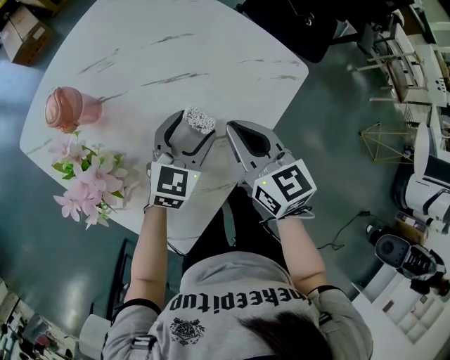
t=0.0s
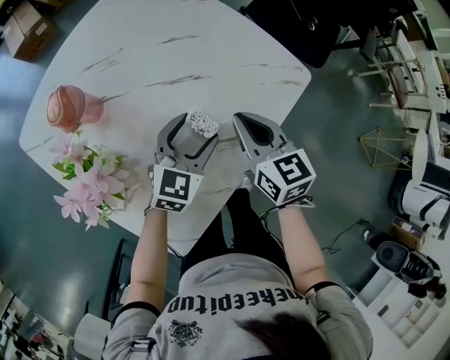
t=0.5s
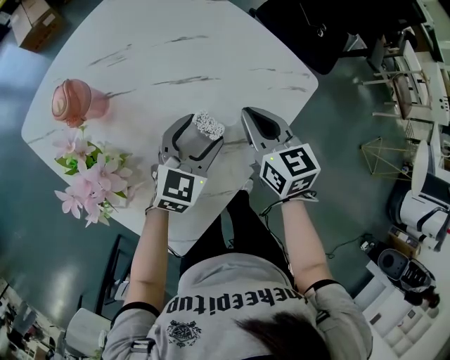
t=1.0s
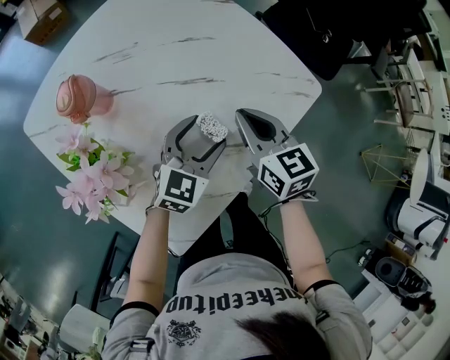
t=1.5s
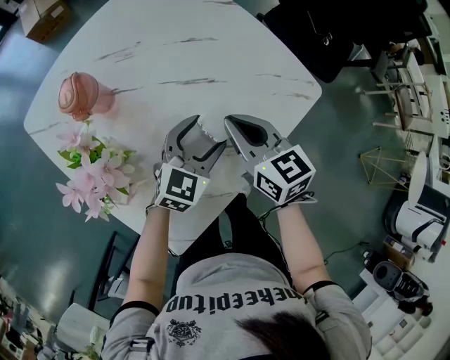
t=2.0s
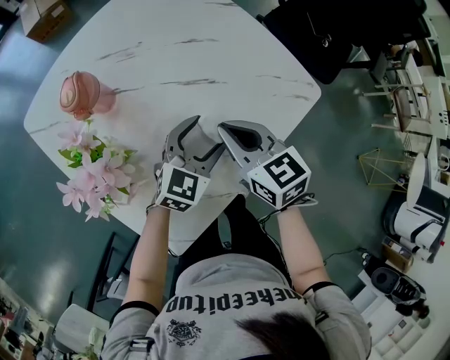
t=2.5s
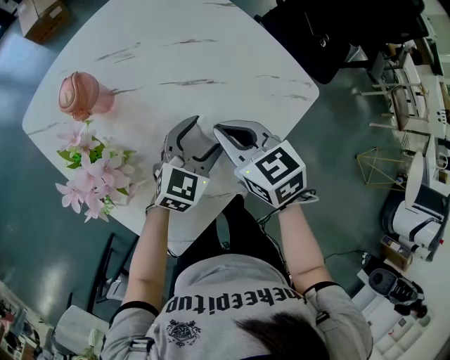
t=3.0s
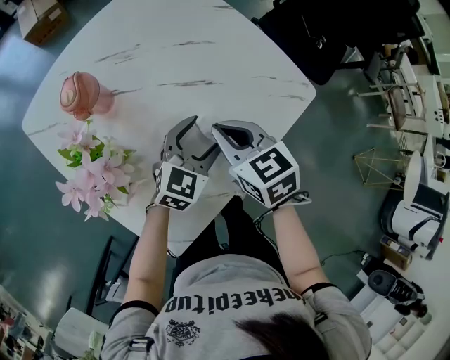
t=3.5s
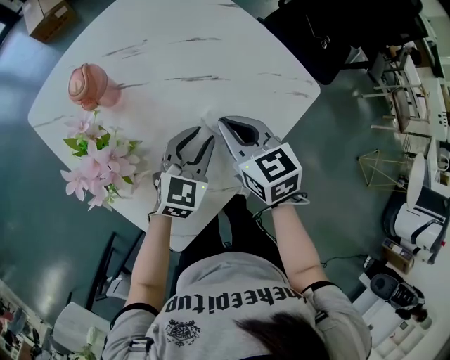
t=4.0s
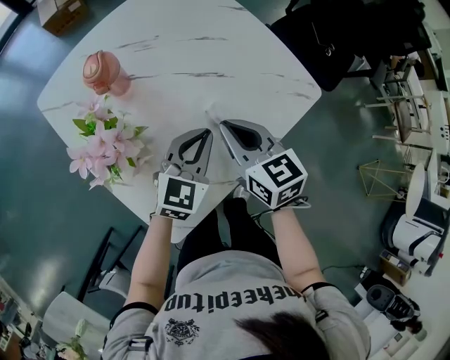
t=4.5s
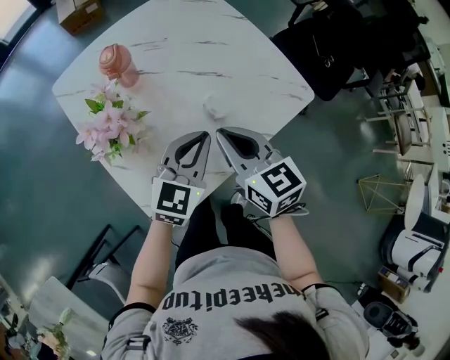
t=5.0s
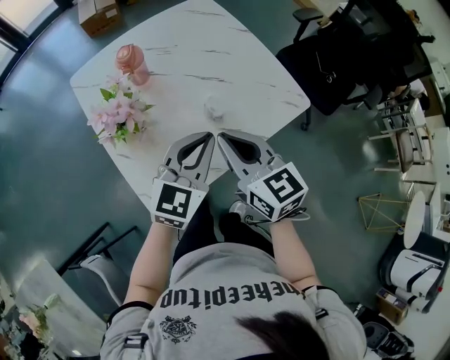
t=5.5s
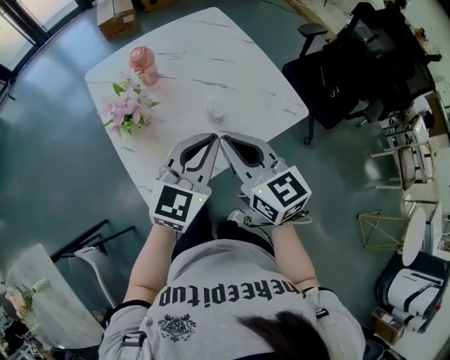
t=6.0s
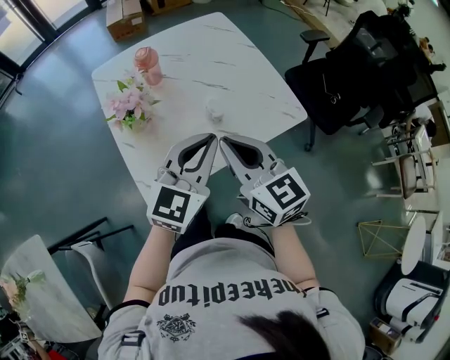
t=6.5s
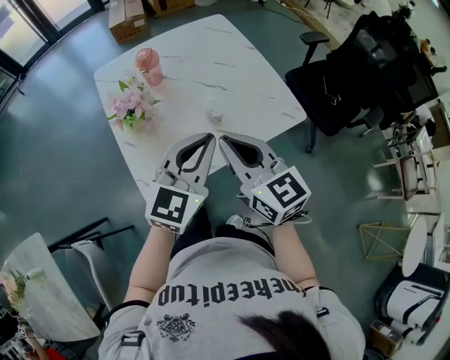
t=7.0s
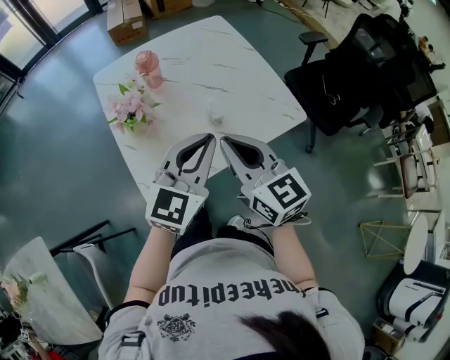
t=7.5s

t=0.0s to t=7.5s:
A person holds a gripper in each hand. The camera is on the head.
t=0.0s to t=2.0s: The right gripper changes place by about 5 cm.
t=2.0s to t=4.0s: The left gripper closes its fingers.
t=4.0s to t=5.5s: Both grippers travel together upward and backward, some 15 cm. The left gripper closes its fingers. Meanwhile the right gripper turns by some 20 degrees.
t=5.5s to t=7.5s: The grippers both shift upward by some 5 cm.

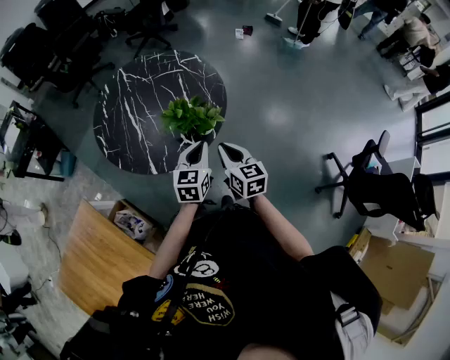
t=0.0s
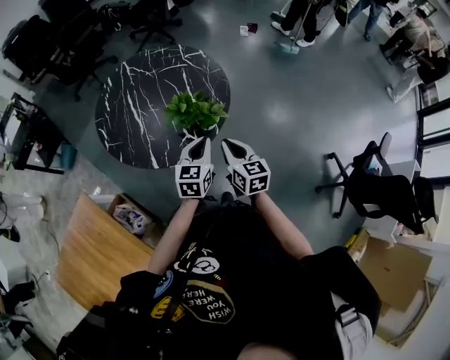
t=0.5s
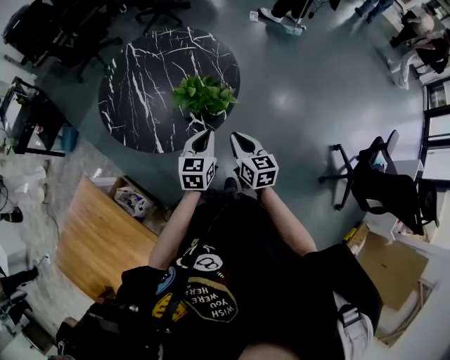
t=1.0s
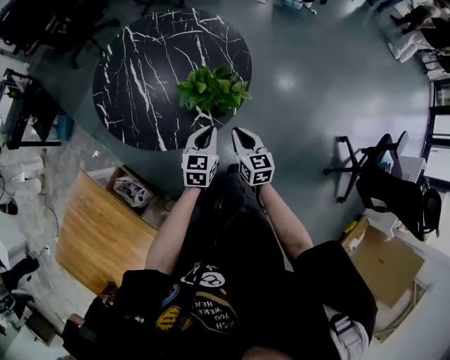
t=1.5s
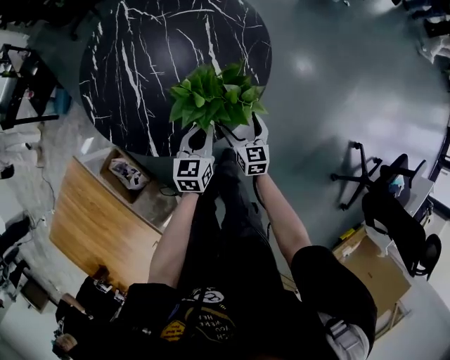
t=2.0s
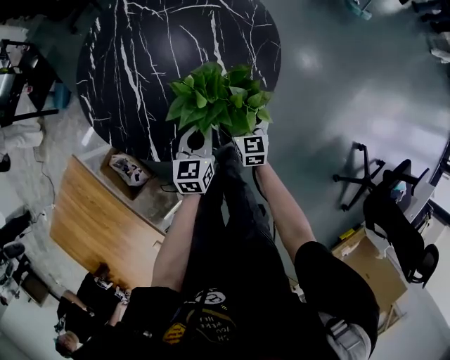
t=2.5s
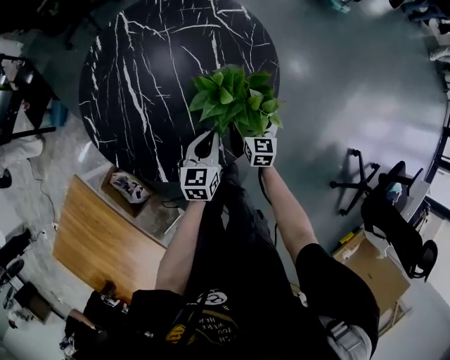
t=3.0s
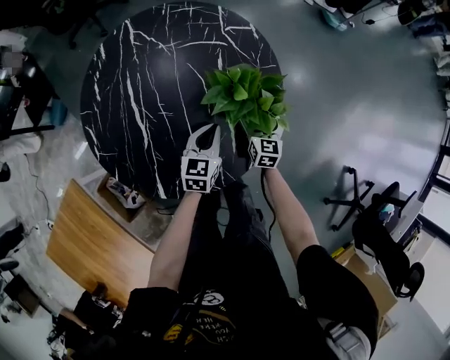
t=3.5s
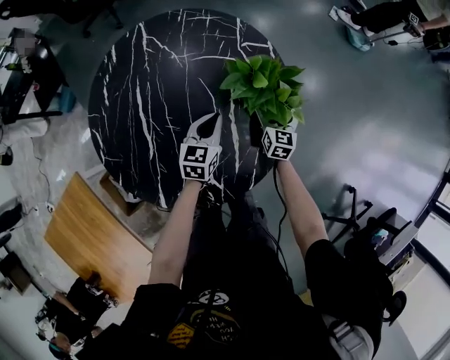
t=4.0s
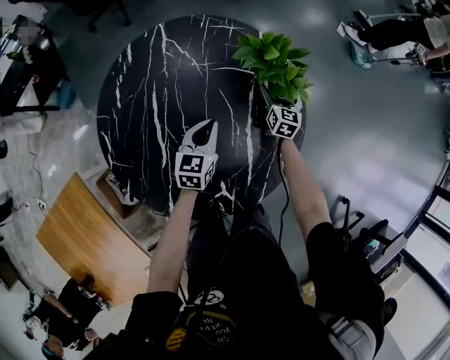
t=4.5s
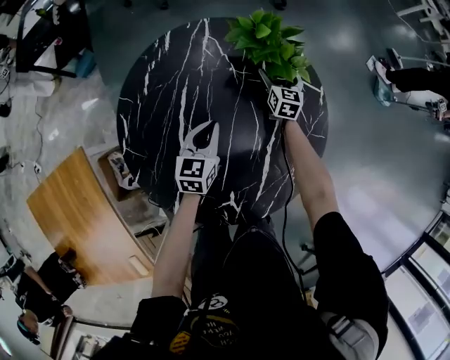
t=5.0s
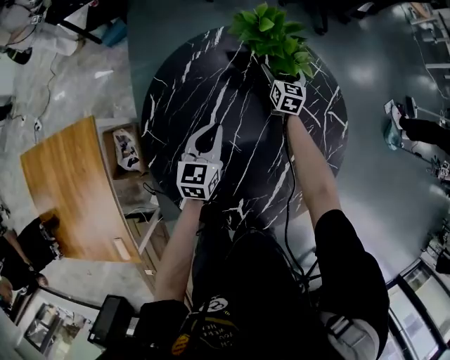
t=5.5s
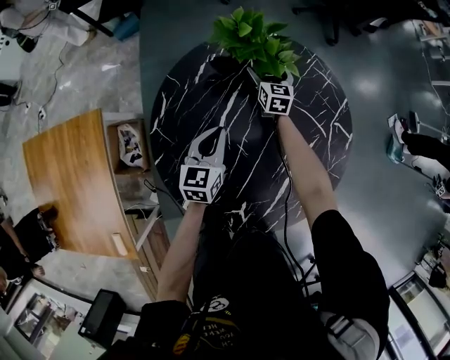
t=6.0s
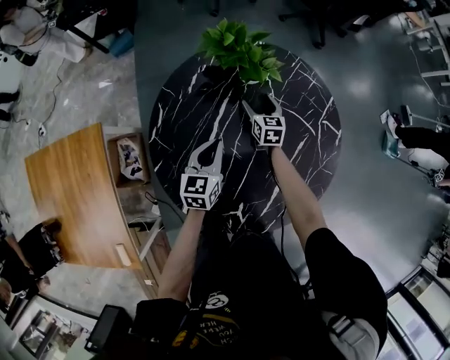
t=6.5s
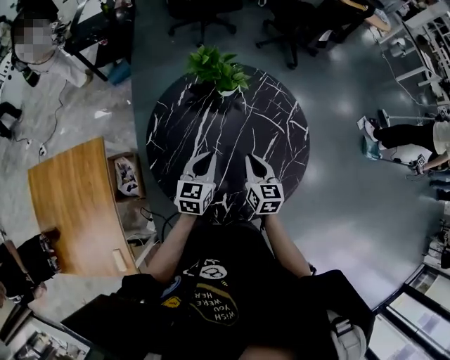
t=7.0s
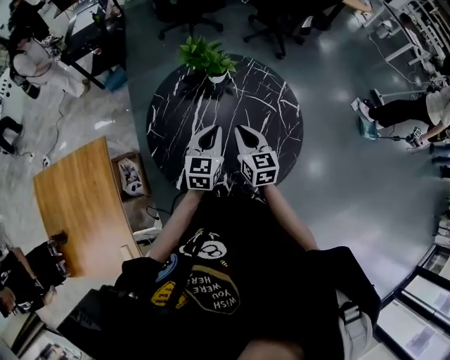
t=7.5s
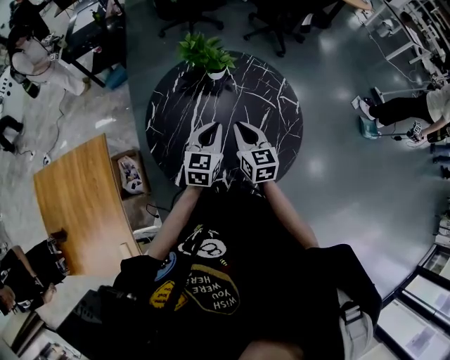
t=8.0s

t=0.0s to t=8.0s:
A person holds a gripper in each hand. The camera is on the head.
t=0.0s to t=2.0s: The grippers both shift downward and forward by some 25 cm. The right gripper opens up.
t=2.0s to t=4.0s: The two grippers go about 30 cm forward.
t=4.0s to t=6.0s: The right gripper changes place by some 50 cm, and swivels some 40 degrees. Meanwhile the left gripper ends up roughly 30 cm from where it was, and changes its angle by roughly 40 degrees.
t=6.0s to t=8.0s: The left gripper moves upward, backward and to the right, approximately 25 cm, while the right gripper goes about 50 cm backward and upward, and closes up.

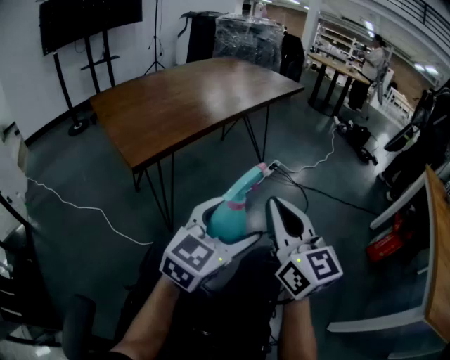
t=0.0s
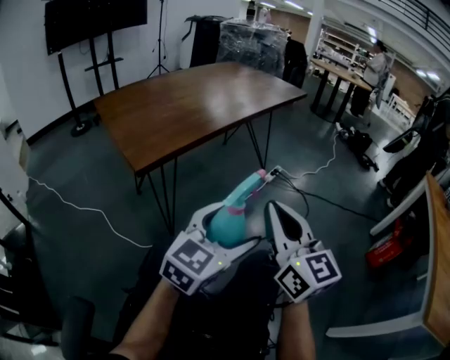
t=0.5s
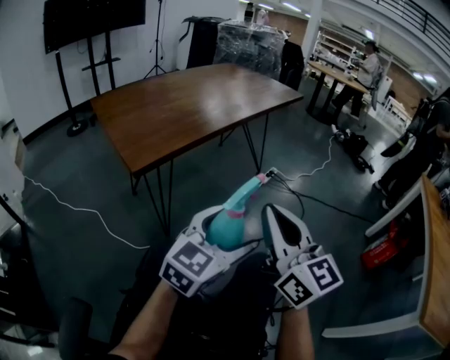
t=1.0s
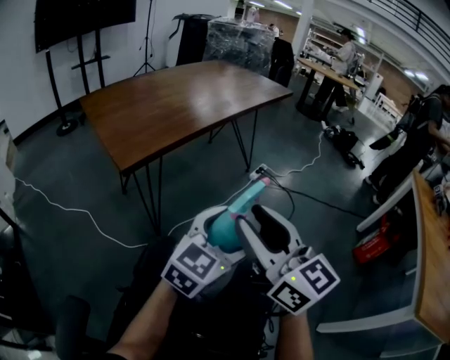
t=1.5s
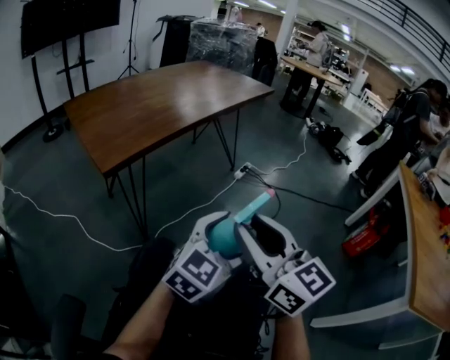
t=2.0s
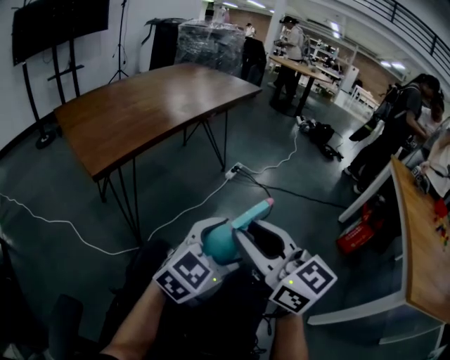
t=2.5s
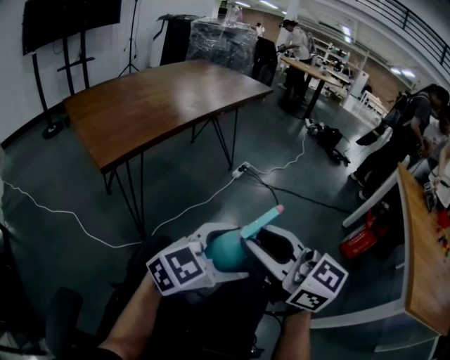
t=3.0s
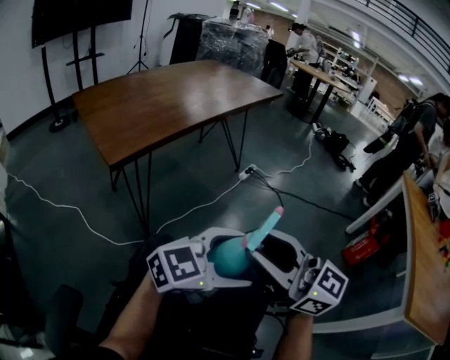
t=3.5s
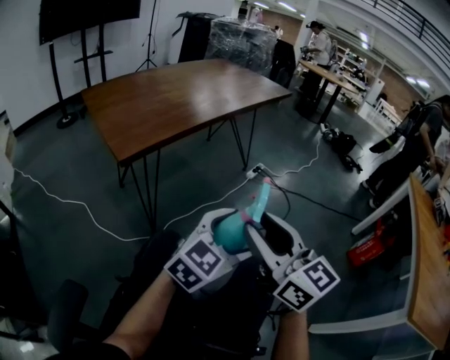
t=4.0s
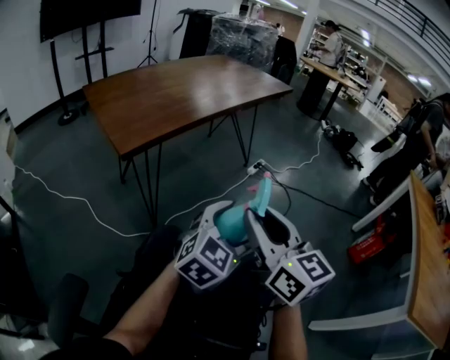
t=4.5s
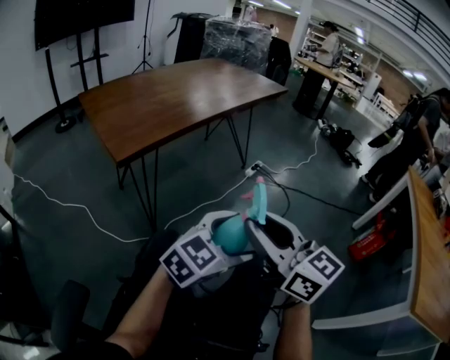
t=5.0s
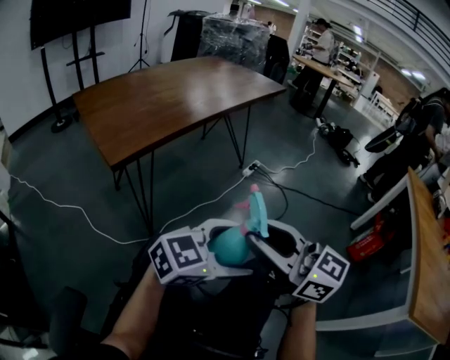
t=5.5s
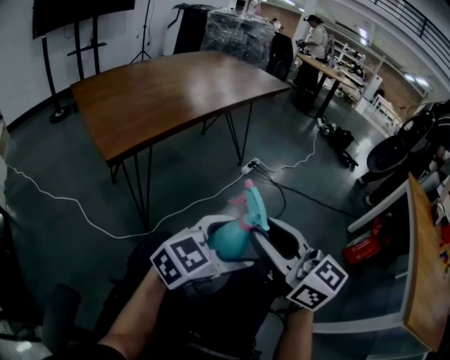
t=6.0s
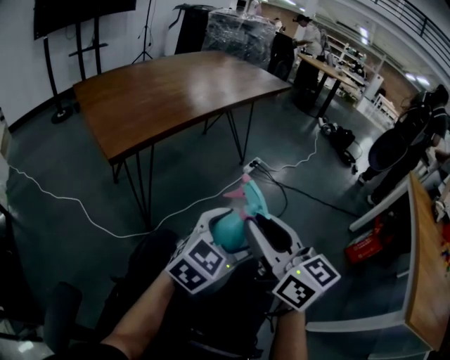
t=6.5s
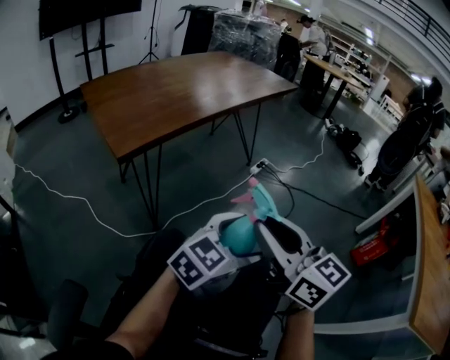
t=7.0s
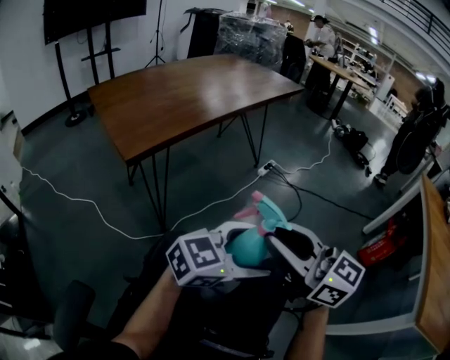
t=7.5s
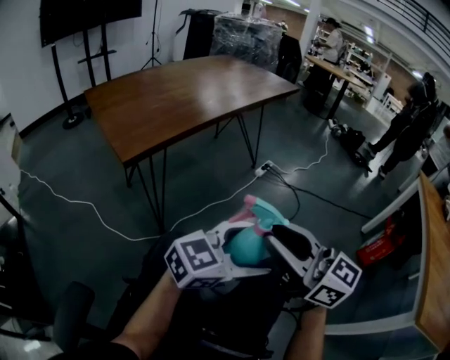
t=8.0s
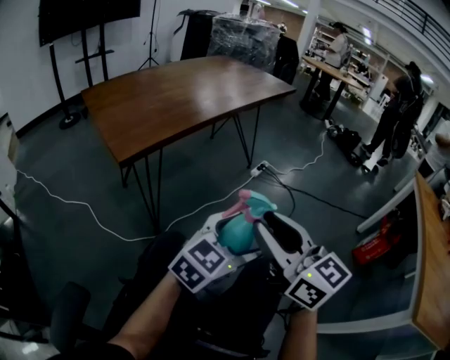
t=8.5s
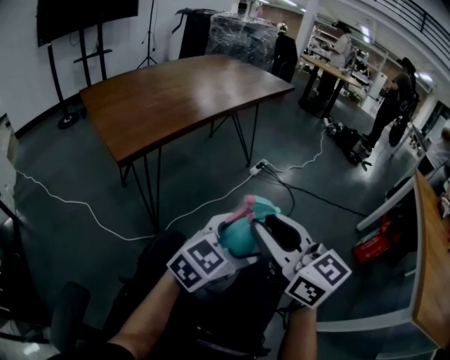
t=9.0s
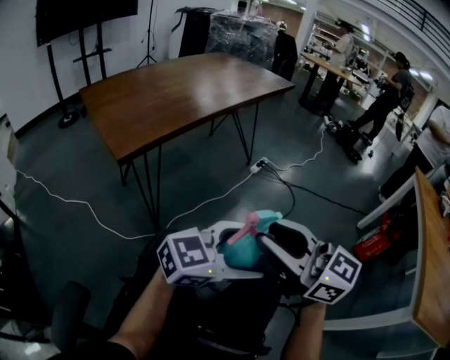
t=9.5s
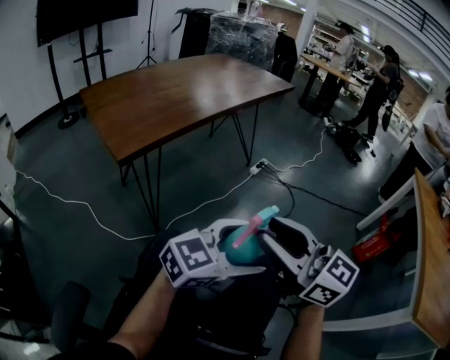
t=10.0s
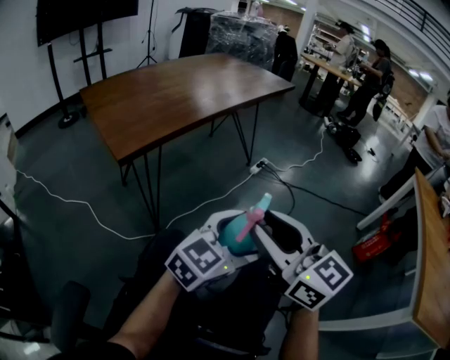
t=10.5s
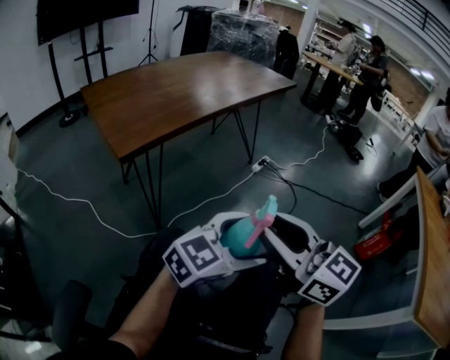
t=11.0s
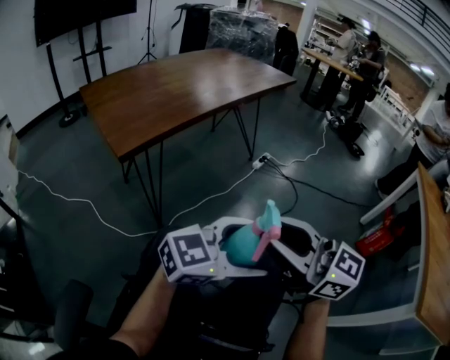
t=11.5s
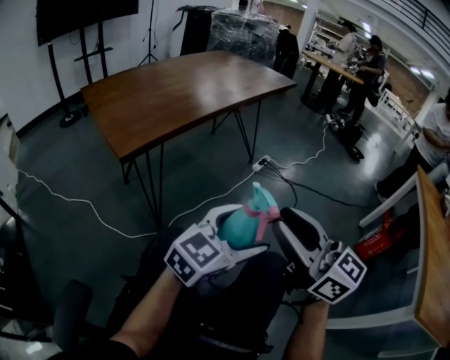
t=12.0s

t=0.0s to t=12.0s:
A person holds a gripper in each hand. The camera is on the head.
t=0.0s to t=2.0s: The left gripper is displaced to the right by roughly 5 cm; the right gripper moves backward, about 5 cm, and opens up.
t=6.0s to t=8.0s: There are only small adjustments of the grippers.
t=10.0s to t=12.0s: The grippers make only small movements.
